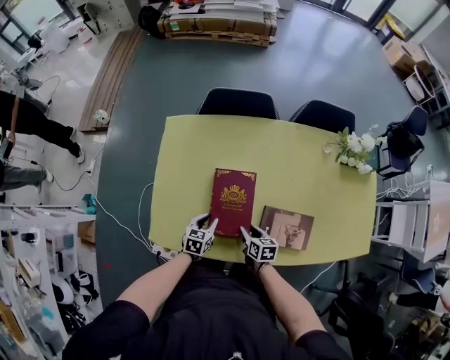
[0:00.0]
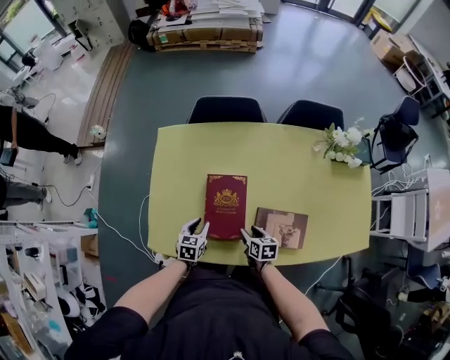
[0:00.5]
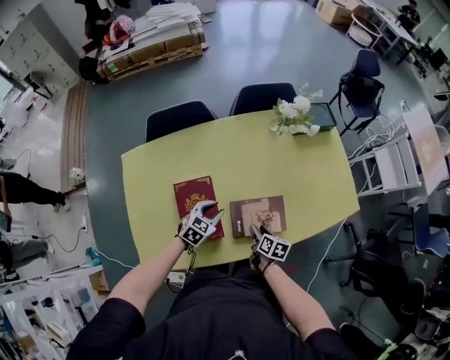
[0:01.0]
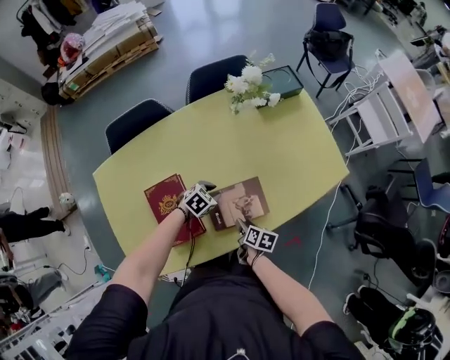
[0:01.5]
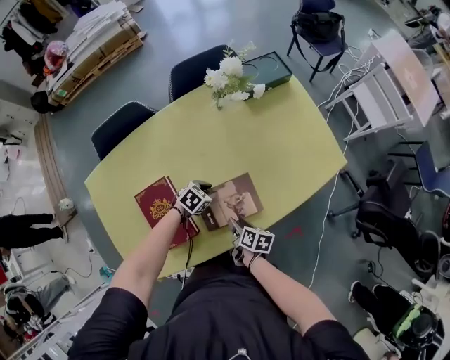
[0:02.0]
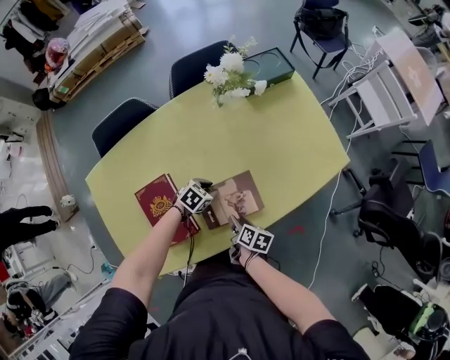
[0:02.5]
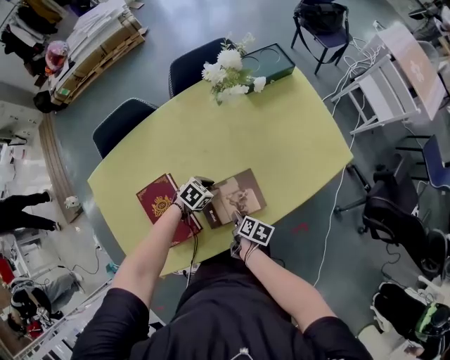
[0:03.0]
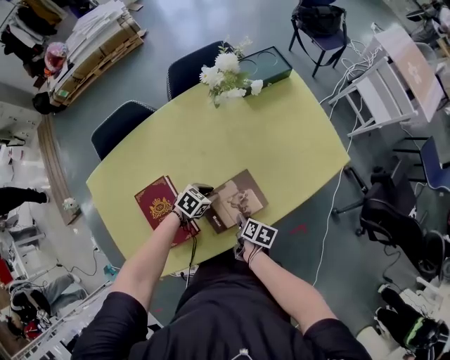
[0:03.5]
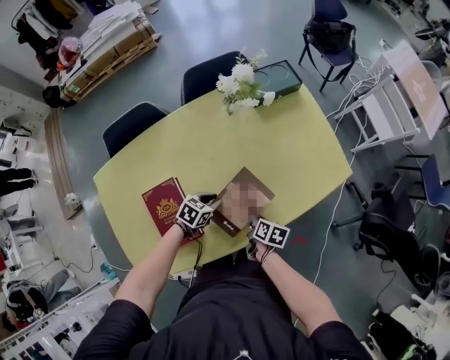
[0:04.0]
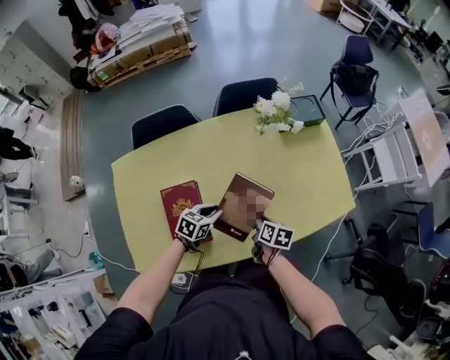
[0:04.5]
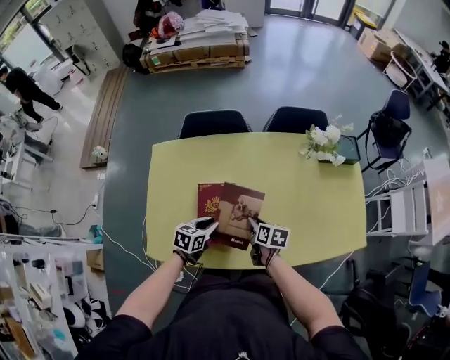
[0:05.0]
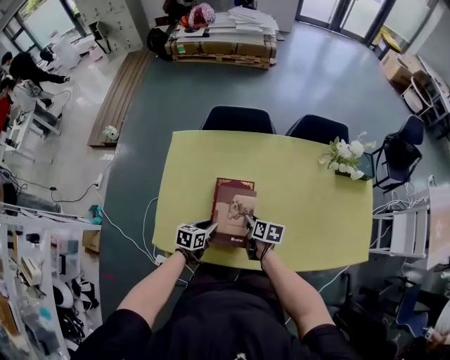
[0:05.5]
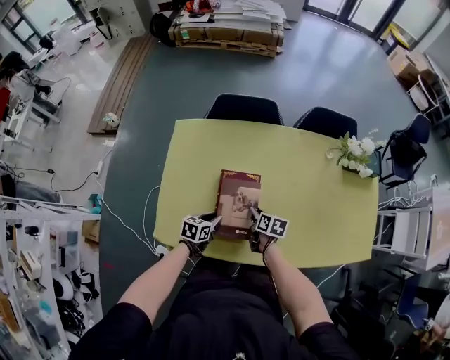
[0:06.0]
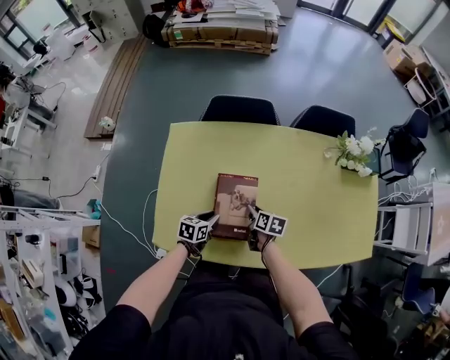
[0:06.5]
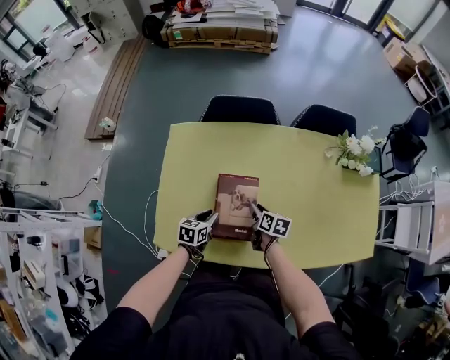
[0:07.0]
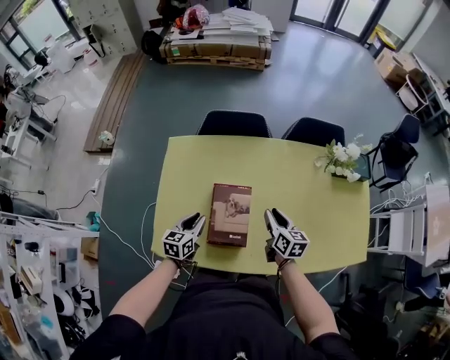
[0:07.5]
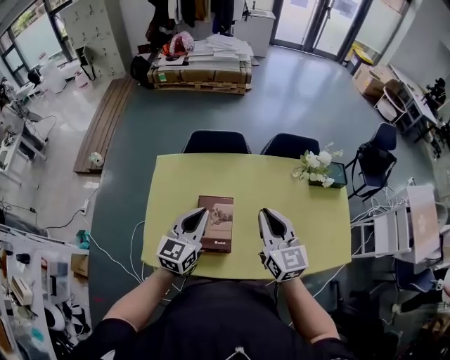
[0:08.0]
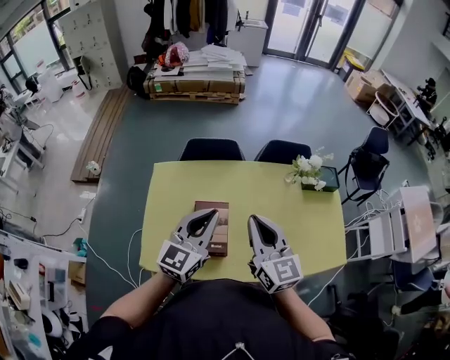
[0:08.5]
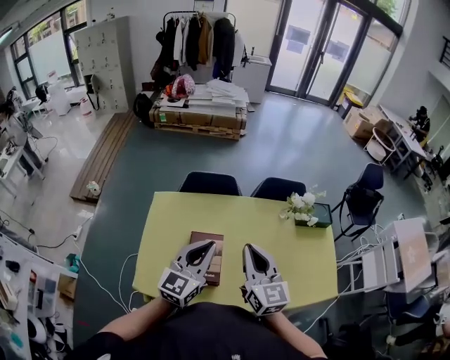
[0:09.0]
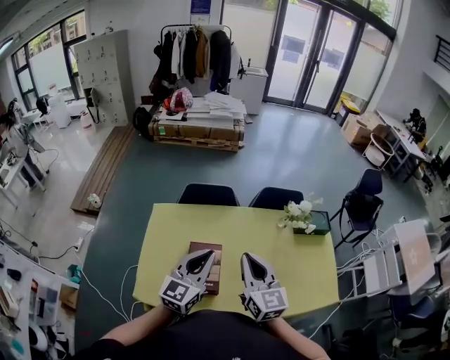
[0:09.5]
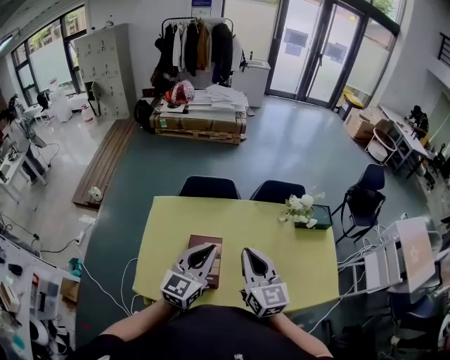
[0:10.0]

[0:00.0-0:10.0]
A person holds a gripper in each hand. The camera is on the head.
0:00.0 to 0:02.0: The left gripper goes upward and returns, approximately 10 cm each way, and rotates some 70 degrees, while the right gripper moves approximately 20 cm, and rotates around the line of its fingers by some 50 degrees, clockwise from behind.
0:02.0 to 0:04.0: The right gripper shifts about 5 cm forward.
0:04.0 to 0:06.0: The left gripper moves approximately 10 cm upward and comes back, and turns by some 50 degrees. The right gripper reaches roughly 10 cm upward, then returns, and turns by approximately 40 degrees.
0:06.0 to 0:08.0: The two grippers go about 35 cm upward. The right gripper points its fingers roughly 40 degrees further upward, and closes. The left gripper tips its fingers upward by approximately 40 degrees.
0:08.0 to 0:10.0: The left gripper shifts some 10 cm upward and to the right, while the right gripper travels upward by approximately 5 cm.

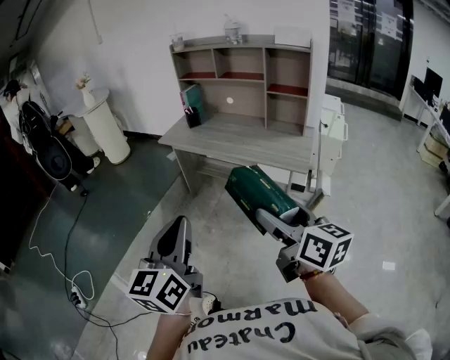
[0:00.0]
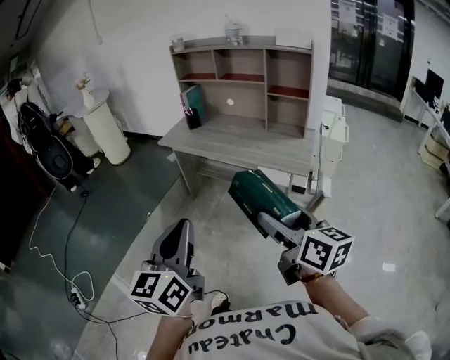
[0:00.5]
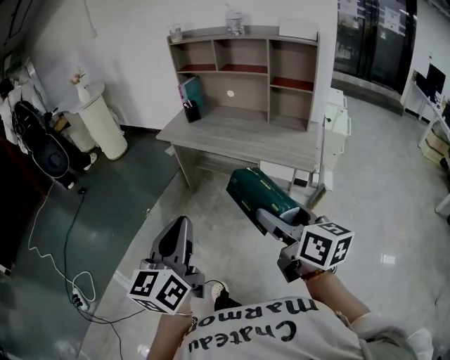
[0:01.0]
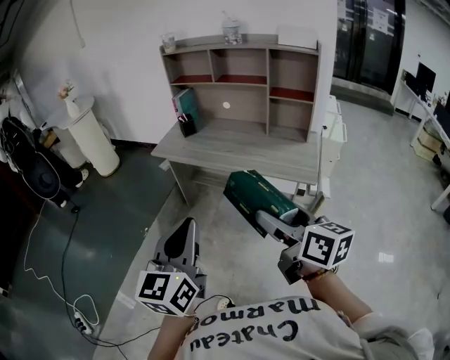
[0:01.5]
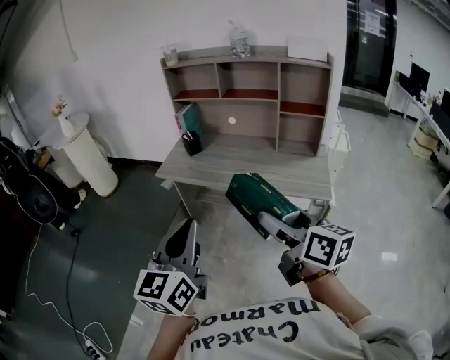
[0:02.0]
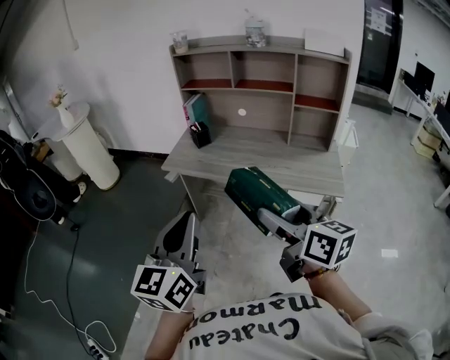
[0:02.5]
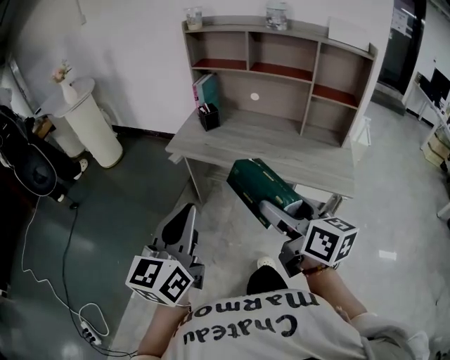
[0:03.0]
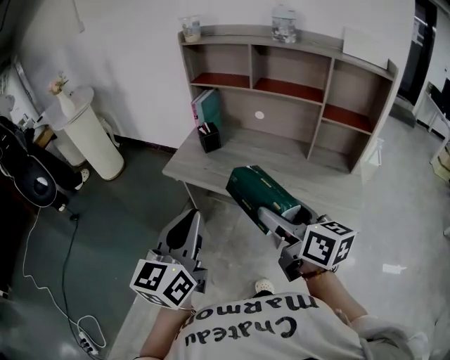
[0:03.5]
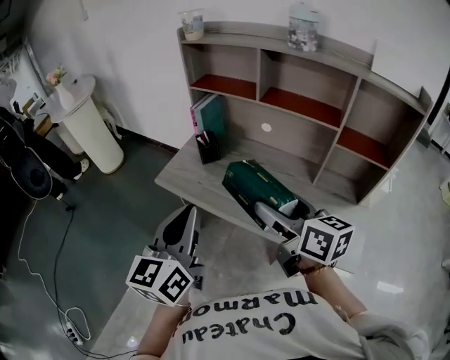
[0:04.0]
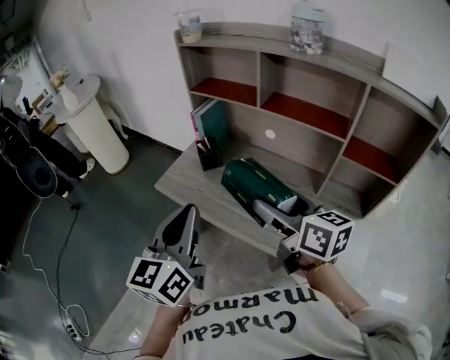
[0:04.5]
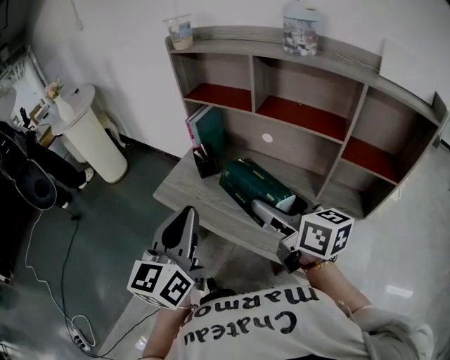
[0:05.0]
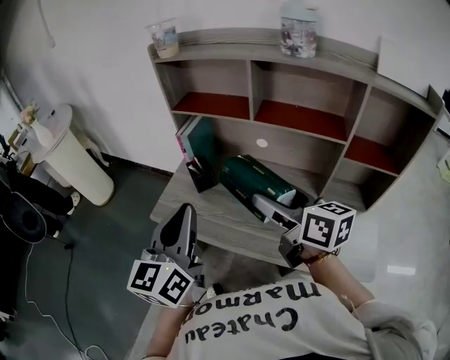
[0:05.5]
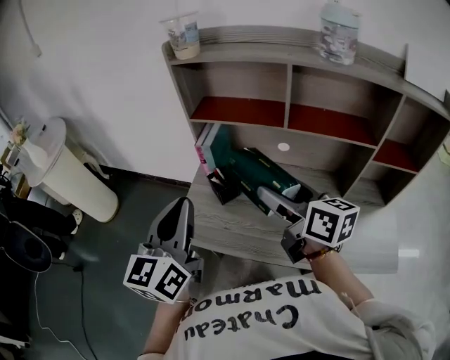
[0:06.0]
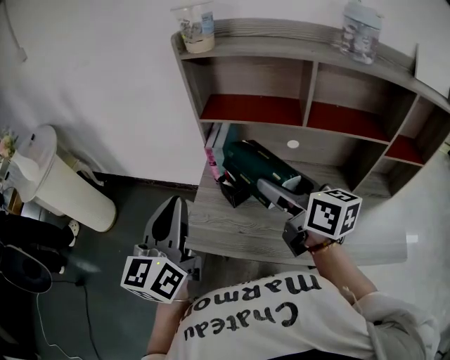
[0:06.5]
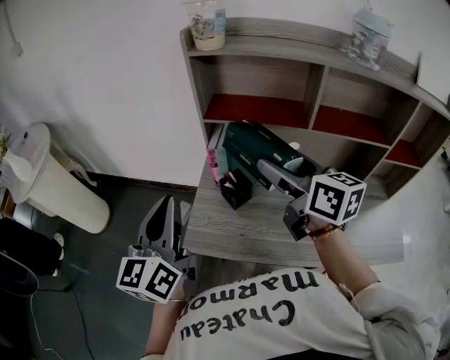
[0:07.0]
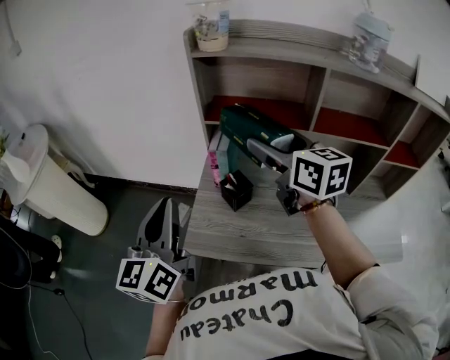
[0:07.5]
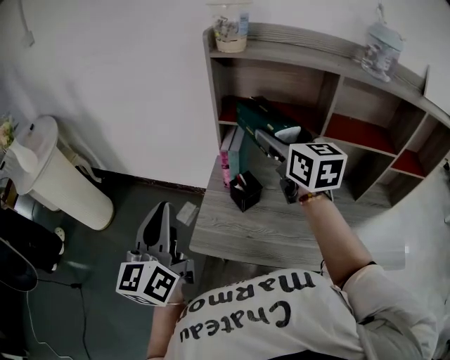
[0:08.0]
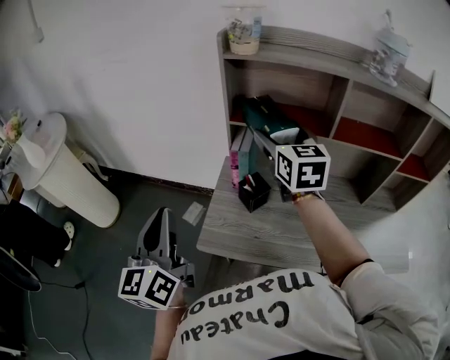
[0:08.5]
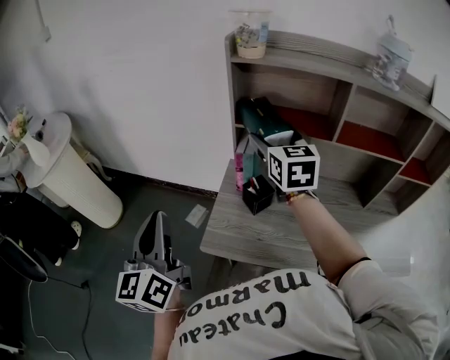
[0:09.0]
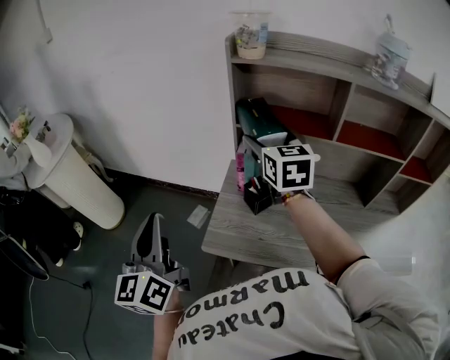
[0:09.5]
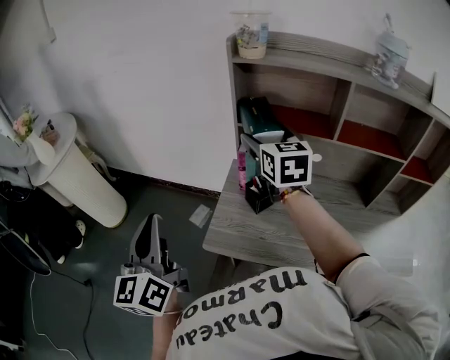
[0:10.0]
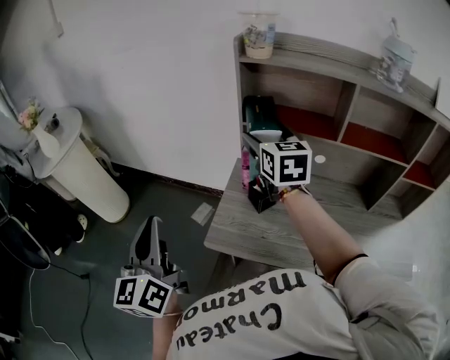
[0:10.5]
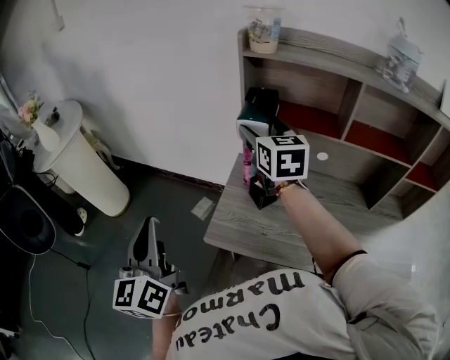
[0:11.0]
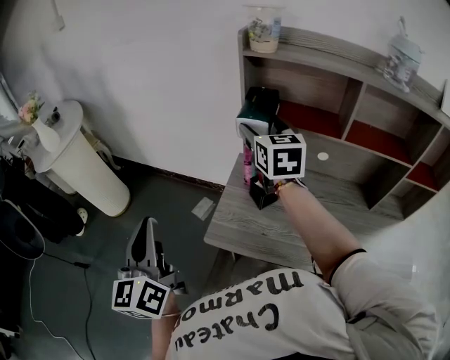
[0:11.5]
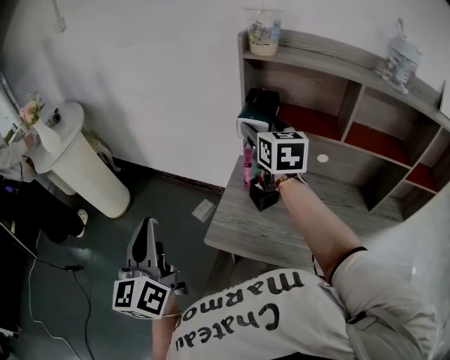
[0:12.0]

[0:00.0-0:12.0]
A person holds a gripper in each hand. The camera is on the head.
0:00.0 to 0:02.0: The left gripper is displaced forward by about 25 cm; the right gripper moves forward and to the left, approximately 25 cm.
0:02.0 to 0:04.0: The two grippers go about 35 cm forward.
0:04.0 to 0:06.0: The grippers both shift forward by roughly 25 cm.
0:06.0 to 0:08.0: The right gripper moves forward, approximately 15 cm, and changes its angle by some 30 degrees; the left gripper heads to the left and forward, covering roughly 15 cm.
0:08.0 to 0:10.0: Both grippers move to the left, roughly 5 cm.
0:10.0 to 0:12.0: The grippers stay close to where they were, moving slightly.

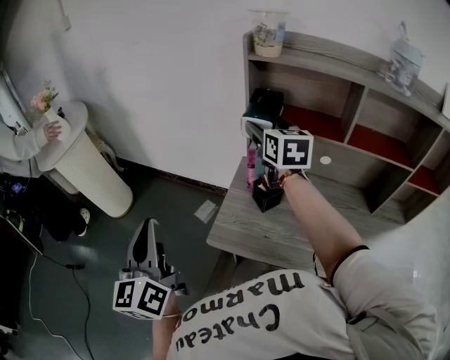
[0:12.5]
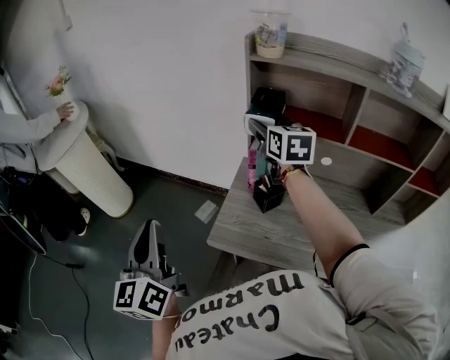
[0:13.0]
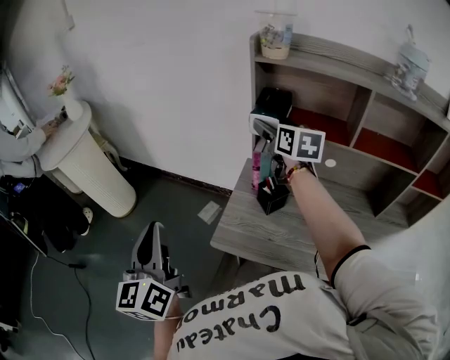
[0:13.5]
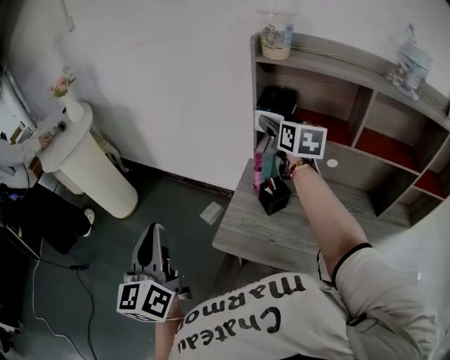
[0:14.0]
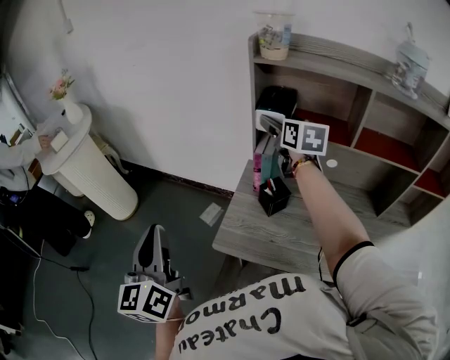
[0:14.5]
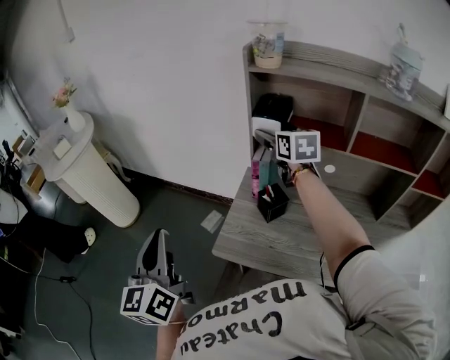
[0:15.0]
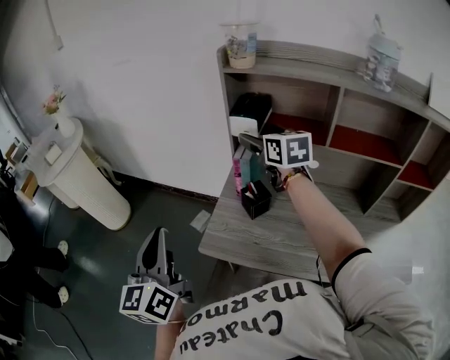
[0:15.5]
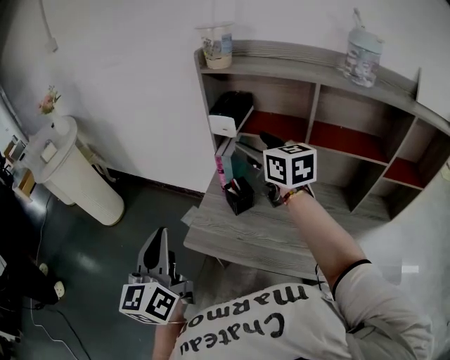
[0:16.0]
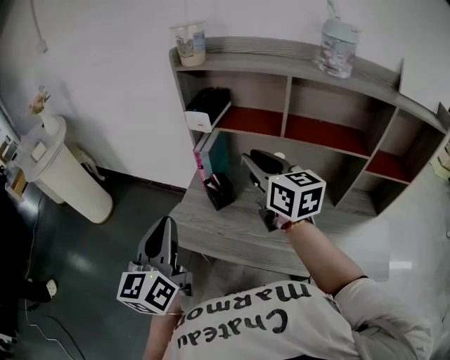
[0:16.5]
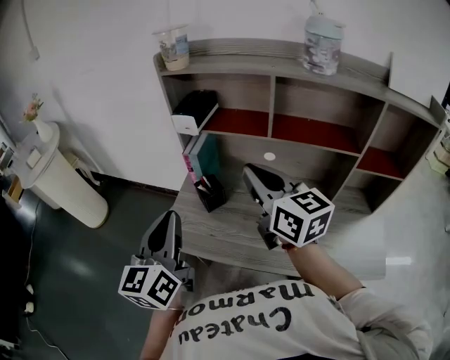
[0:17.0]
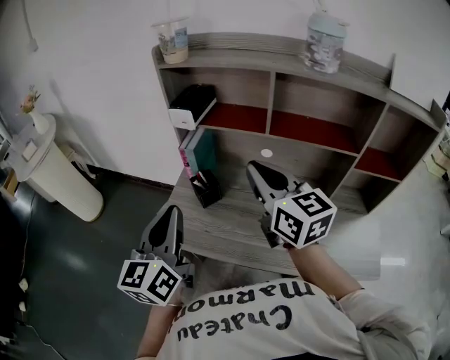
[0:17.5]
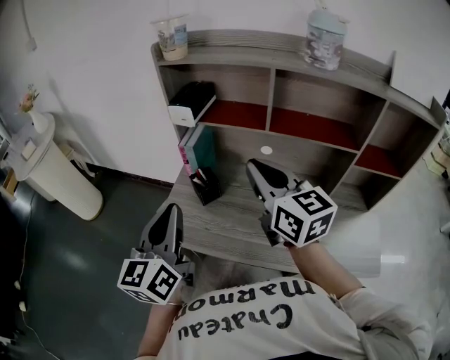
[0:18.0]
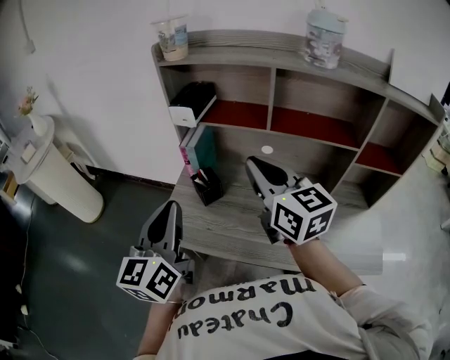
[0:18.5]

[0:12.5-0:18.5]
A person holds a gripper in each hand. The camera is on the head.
0:12.5 to 0:14.5: The right gripper ends up some 5 cm from where it was.
0:14.5 to 0:16.5: The left gripper shifts about 20 cm to the right, while the right gripper shifts roughly 20 cm backward, and closes its fingers.
0:16.5 to 0:18.5: The right gripper shifts about 5 cm backward; the left gripper is displaced to the right by about 5 cm.
